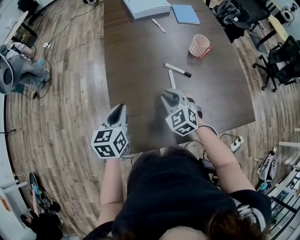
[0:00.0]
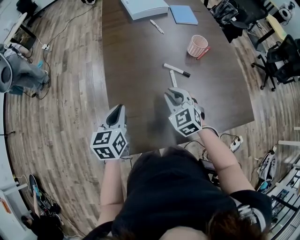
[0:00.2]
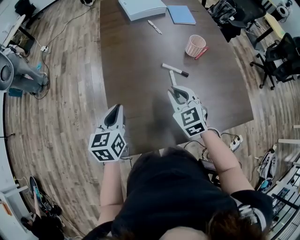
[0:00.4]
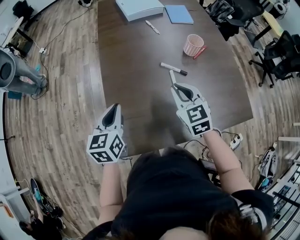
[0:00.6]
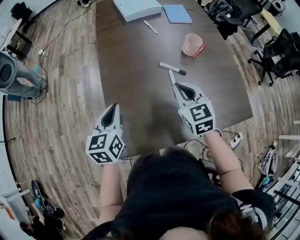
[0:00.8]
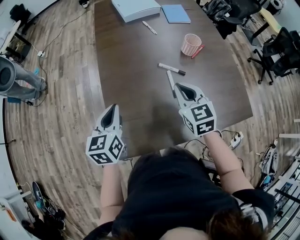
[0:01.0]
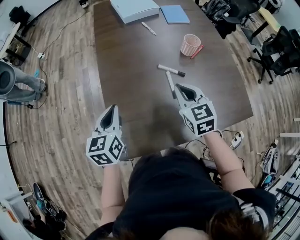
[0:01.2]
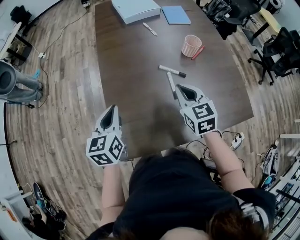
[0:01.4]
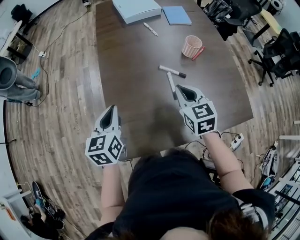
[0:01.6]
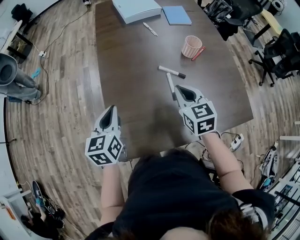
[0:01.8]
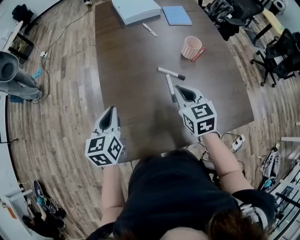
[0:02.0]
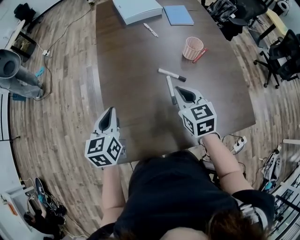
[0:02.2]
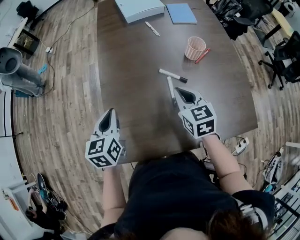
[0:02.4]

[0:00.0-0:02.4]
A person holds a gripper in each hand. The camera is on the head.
0:00.0 to 0:01.2: The right gripper heads upward and to the right, covering about 10 cm, and rotates about 30 degrees.
0:01.2 to 0:02.4: The right gripper changes place by about 5 cm.

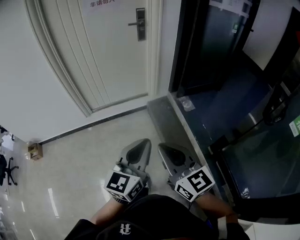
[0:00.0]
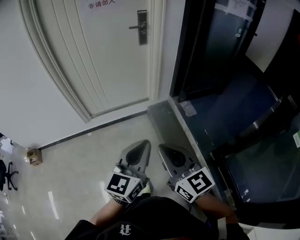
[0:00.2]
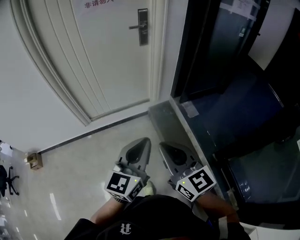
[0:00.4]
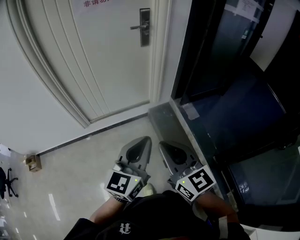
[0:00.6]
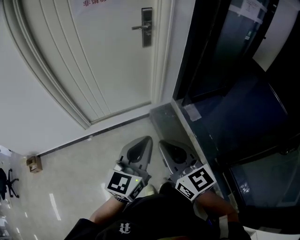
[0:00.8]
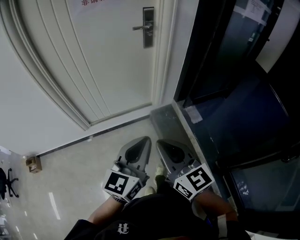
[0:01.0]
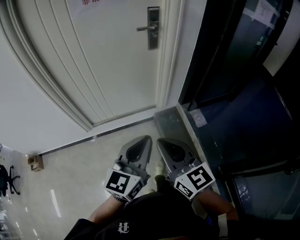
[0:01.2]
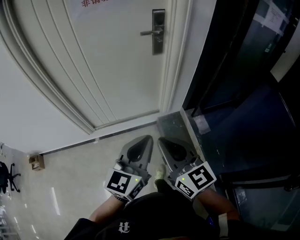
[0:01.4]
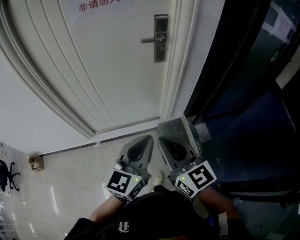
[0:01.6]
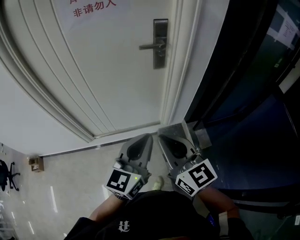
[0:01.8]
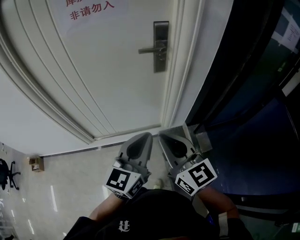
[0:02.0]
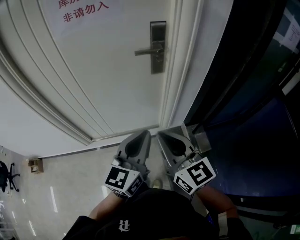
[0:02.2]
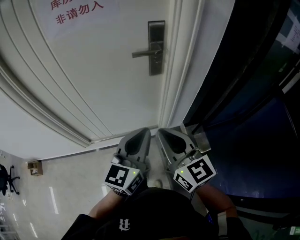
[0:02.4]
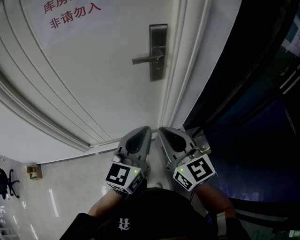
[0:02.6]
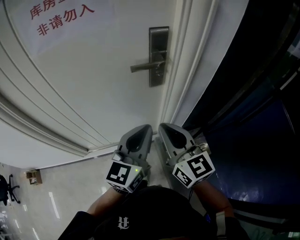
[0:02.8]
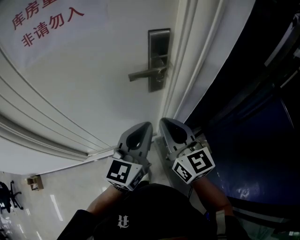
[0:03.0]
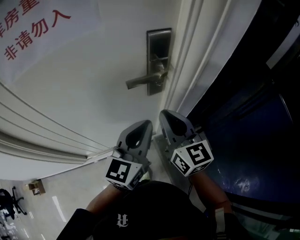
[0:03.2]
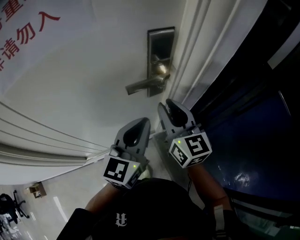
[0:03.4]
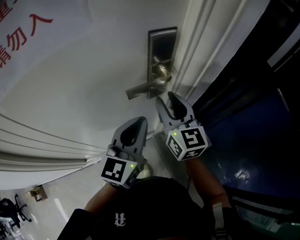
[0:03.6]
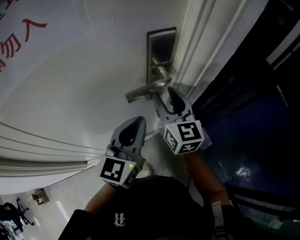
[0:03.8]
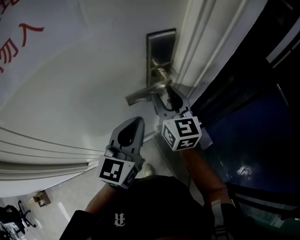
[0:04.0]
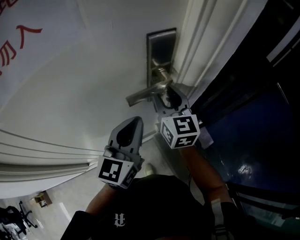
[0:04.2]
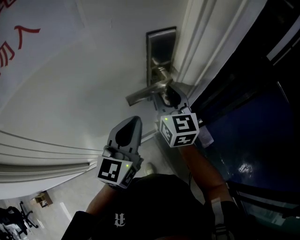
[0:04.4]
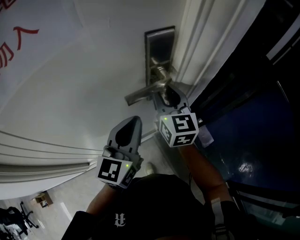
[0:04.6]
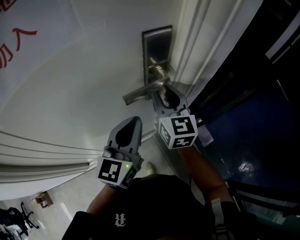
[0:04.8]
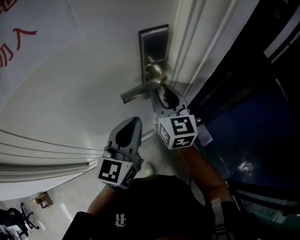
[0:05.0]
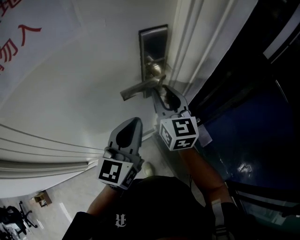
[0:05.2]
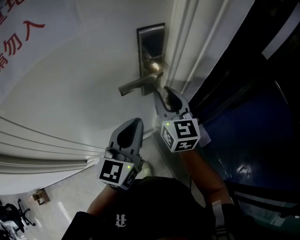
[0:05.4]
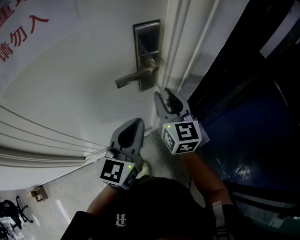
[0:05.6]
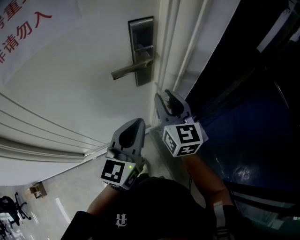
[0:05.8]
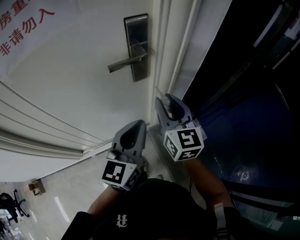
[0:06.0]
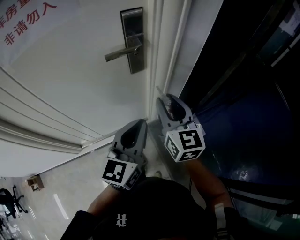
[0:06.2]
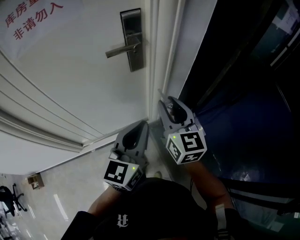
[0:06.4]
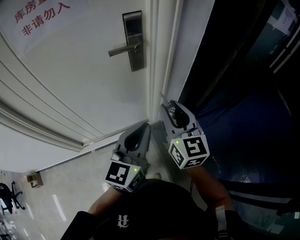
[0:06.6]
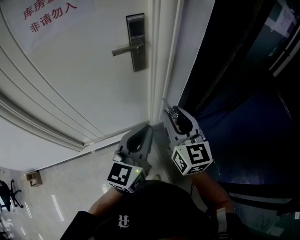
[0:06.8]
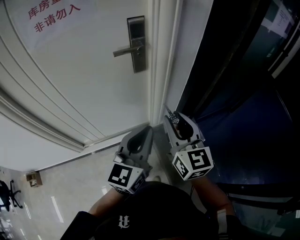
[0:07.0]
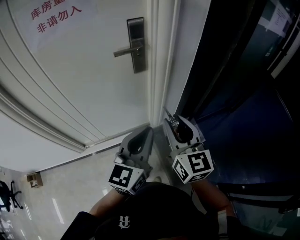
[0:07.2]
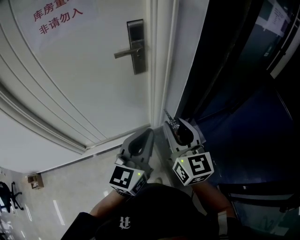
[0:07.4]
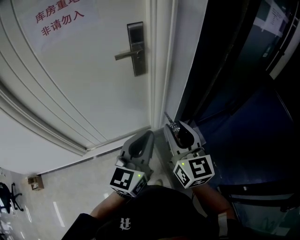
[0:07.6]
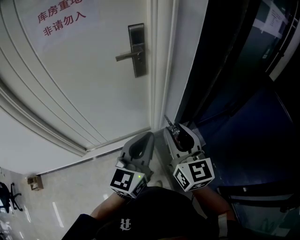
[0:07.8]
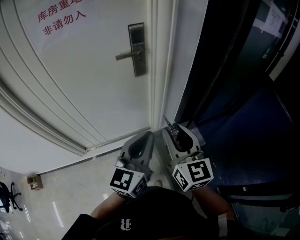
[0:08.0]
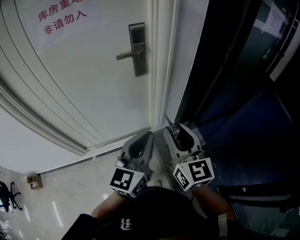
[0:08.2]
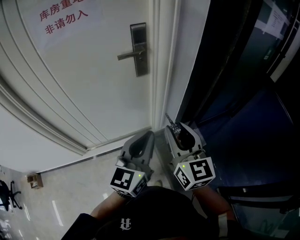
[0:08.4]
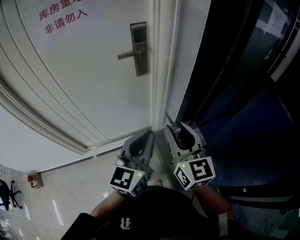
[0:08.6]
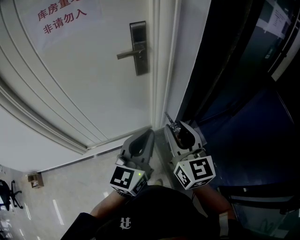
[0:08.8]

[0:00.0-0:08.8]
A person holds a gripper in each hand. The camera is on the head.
0:00.0 to 0:01.4: The two grippers go roughly 35 cm forward.
0:01.4 to 0:03.0: Both grippers move forward, approximately 40 cm.
0:03.0 to 0:04.4: The right gripper travels forward by some 20 cm, turns by approximately 20 degrees, and opens. Meanwhile the left gripper is displaced forward and to the left by some 10 cm.
0:04.4 to 0:05.8: The grippers both shift backward and to the right by approximately 10 cm.
0:05.8 to 0:07.4: The right gripper is displaced backward by some 25 cm. Meanwhile the left gripper heads backward and to the right, covering roughly 20 cm.
0:07.4 to 0:08.8: There are only small adjustments of the grippers.

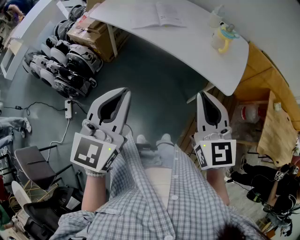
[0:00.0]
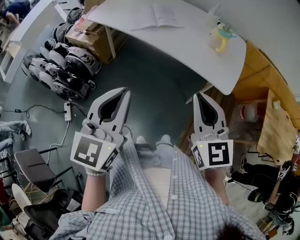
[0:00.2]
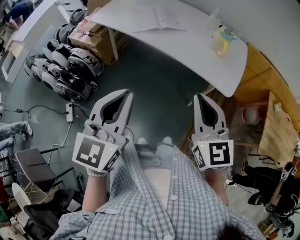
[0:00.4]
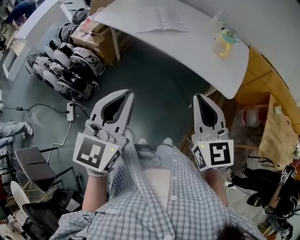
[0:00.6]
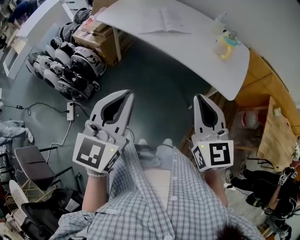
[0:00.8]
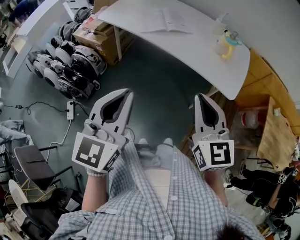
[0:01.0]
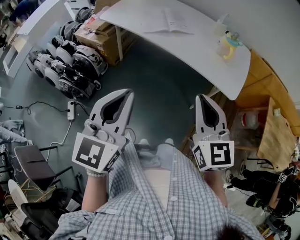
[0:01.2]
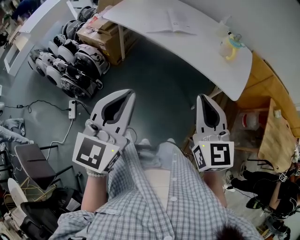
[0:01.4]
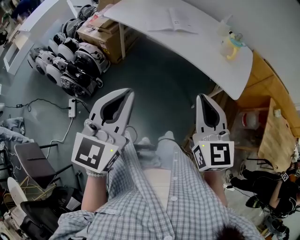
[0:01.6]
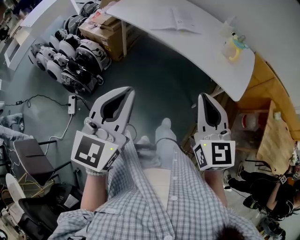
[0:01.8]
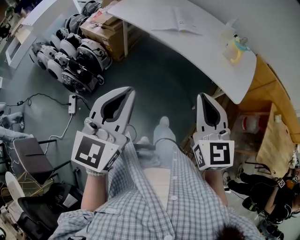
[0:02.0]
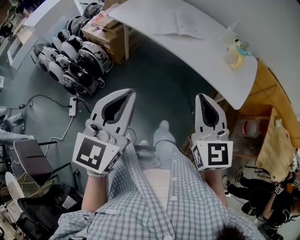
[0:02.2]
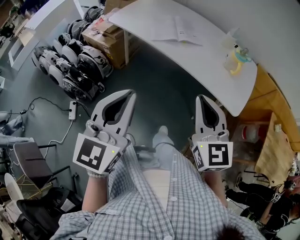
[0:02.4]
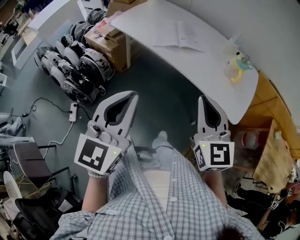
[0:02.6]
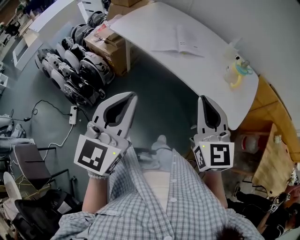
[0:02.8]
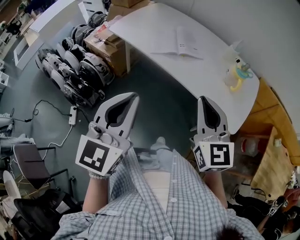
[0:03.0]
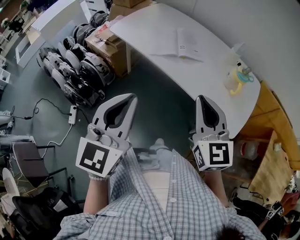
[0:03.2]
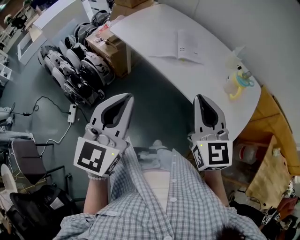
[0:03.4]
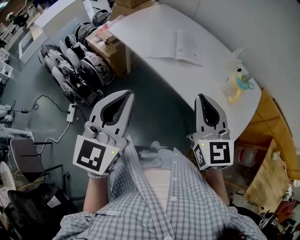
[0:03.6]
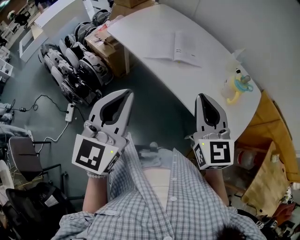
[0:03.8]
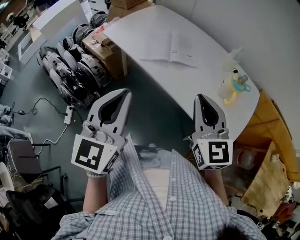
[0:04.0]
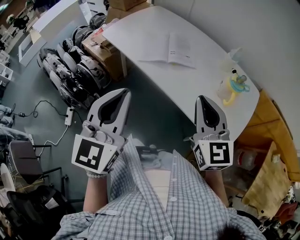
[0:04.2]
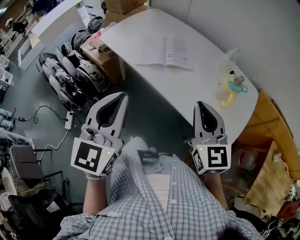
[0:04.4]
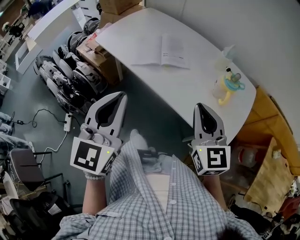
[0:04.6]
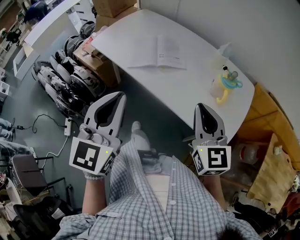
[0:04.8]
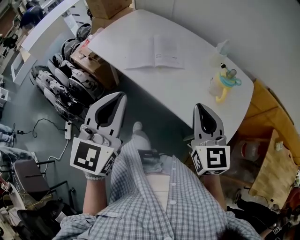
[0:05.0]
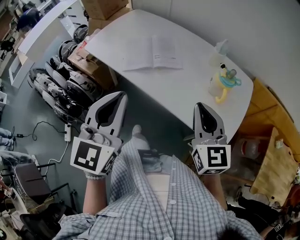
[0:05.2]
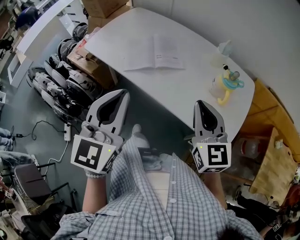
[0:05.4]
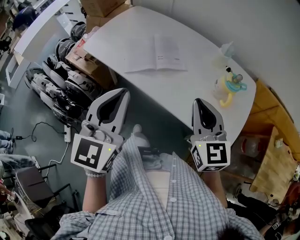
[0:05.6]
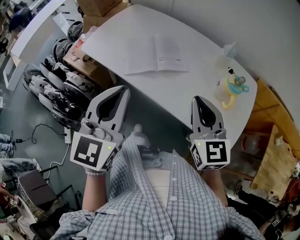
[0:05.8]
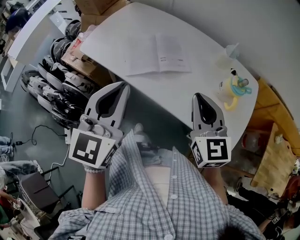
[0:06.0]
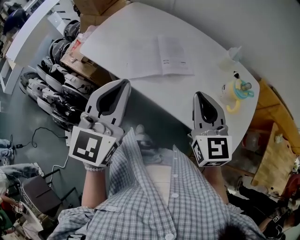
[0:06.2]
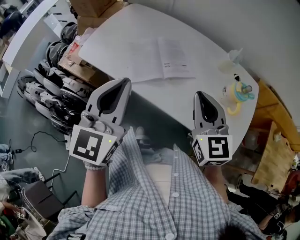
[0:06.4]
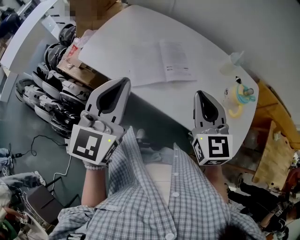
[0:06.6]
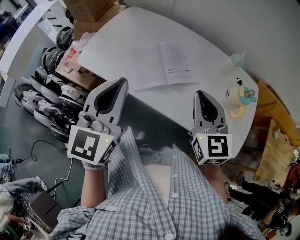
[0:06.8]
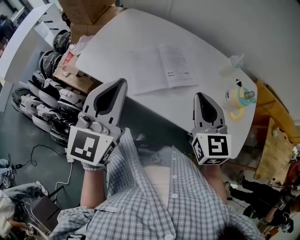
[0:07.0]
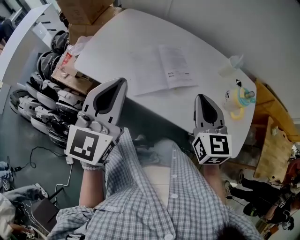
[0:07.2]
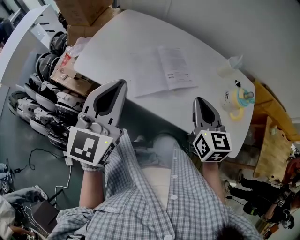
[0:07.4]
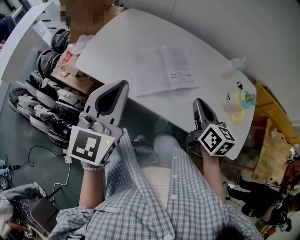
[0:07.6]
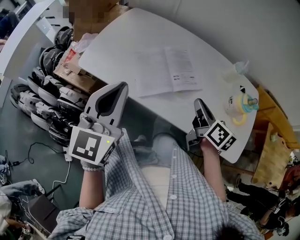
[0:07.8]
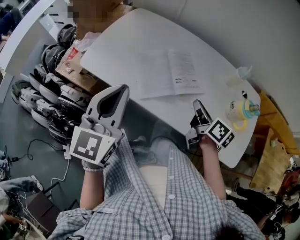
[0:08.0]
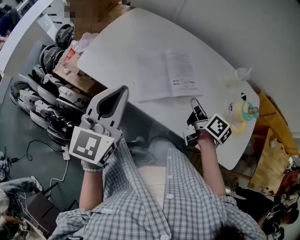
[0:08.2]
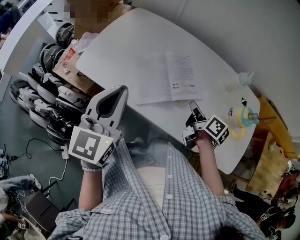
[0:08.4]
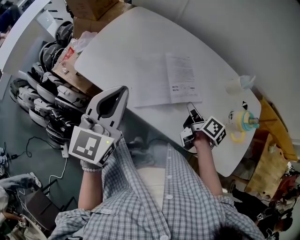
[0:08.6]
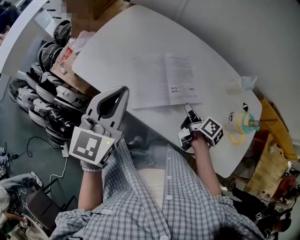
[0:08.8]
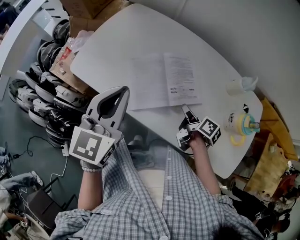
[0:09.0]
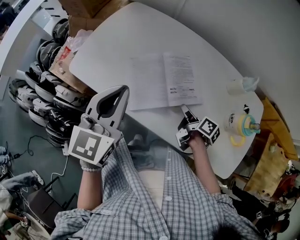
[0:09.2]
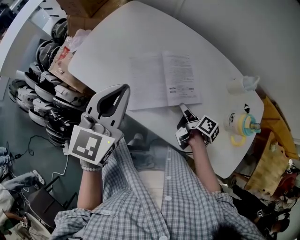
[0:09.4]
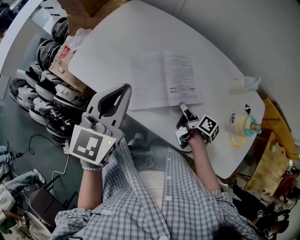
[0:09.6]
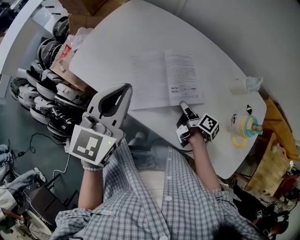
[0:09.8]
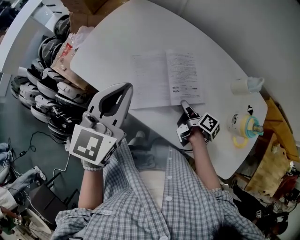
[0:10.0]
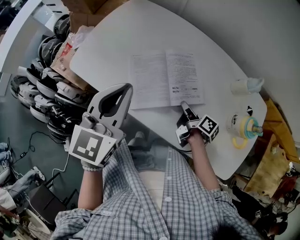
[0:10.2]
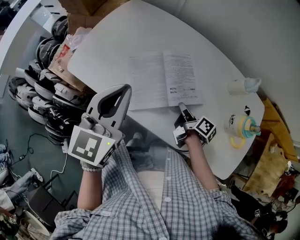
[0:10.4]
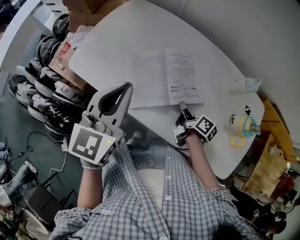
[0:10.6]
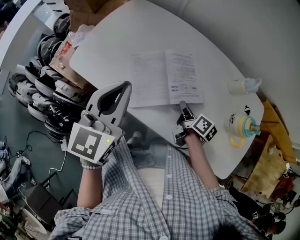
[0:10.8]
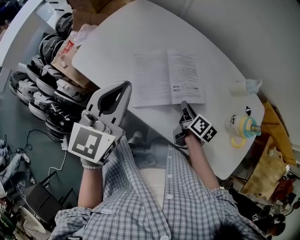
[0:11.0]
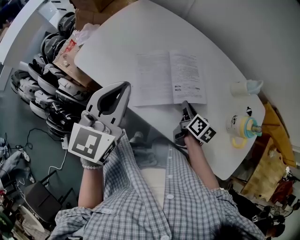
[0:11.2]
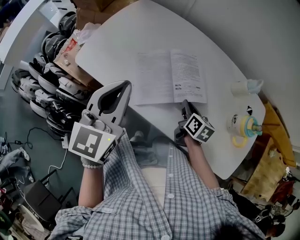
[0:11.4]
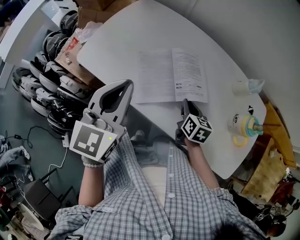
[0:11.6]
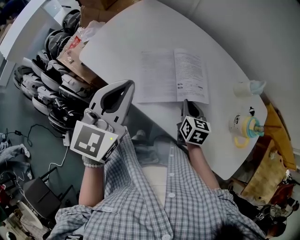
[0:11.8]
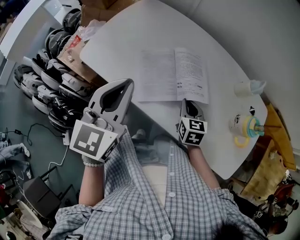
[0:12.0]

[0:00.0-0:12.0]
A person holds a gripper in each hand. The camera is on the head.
0:00.0 to 0:01.6: Both grippers move to the left, roughly 5 cm.
0:01.6 to 0:03.0: Both grippers travel together forward, about 15 cm.
0:03.0 to 0:04.4: The right gripper is displaced to the right and forward by approximately 10 cm, while the left gripper travels forward and to the right by roughly 10 cm.
0:04.4 to 0:06.0: Both grippers move forward, roughly 15 cm.
0:06.0 to 0:07.6: The right gripper moves downward and forward, about 10 cm, and turns by about 40 degrees. Meanwhile the left gripper is displaced to the left and forward by about 15 cm.
0:07.6 to 0:09.0: The left gripper shifts roughly 10 cm forward and downward; the right gripper goes roughly 20 cm downward and forward, rotates around the line of its fingers by about 40 degrees, clockwise from behind, and opens up.
0:09.0 to 0:10.4: The grippers stay close to where they were, moving slightly.
0:10.4 to 0:12.0: The right gripper changes place by some 5 cm, and rotates around the line of its fingers by approximately 70 degrees, counterclockwise from behind.
